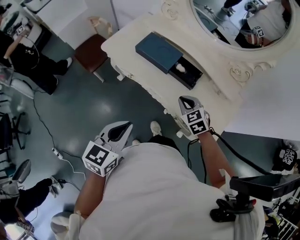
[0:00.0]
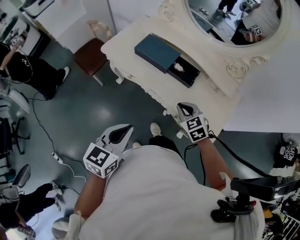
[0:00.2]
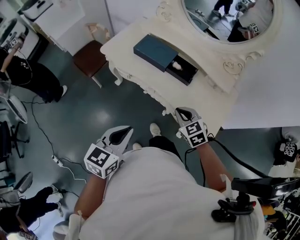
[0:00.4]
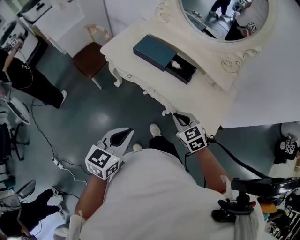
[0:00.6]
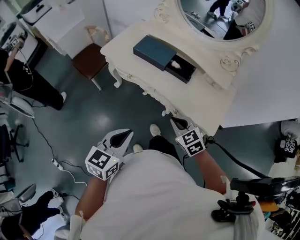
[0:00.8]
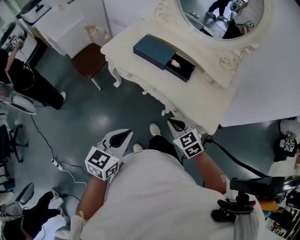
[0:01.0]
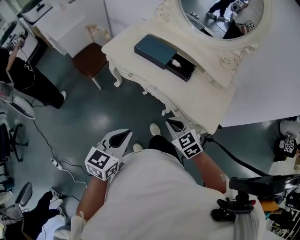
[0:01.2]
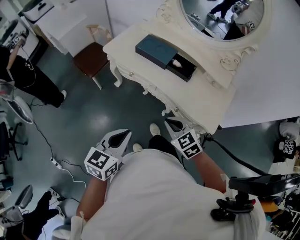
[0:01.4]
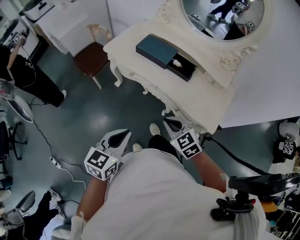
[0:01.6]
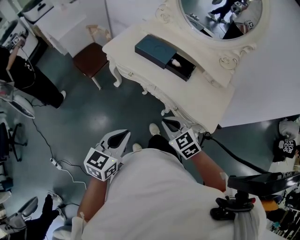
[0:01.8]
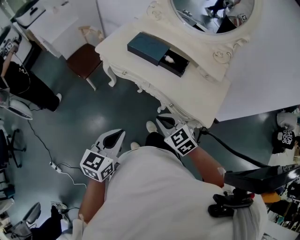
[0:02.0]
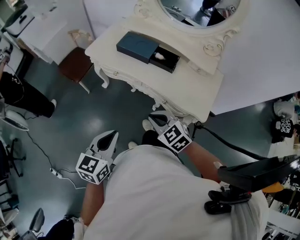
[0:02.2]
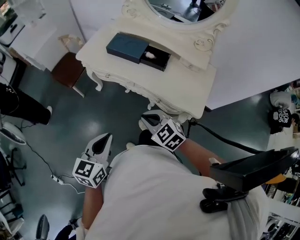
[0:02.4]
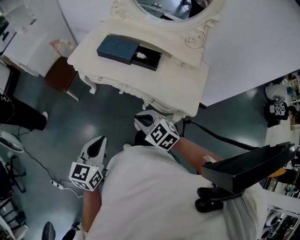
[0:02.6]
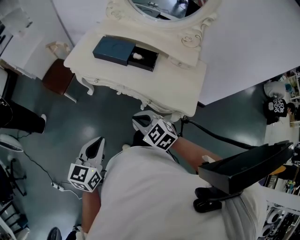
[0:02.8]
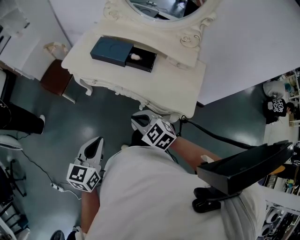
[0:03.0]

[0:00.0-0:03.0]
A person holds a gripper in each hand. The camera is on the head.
0:00.0 to 0:01.6: The right gripper goes some 25 cm backward and to the left. The left gripper travels backward by approximately 15 cm.
0:01.6 to 0:03.0: The grippers stay close to where they were, moving slightly.

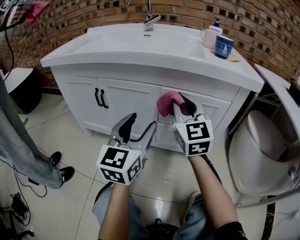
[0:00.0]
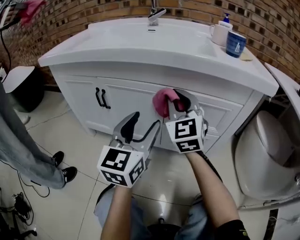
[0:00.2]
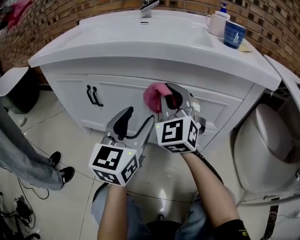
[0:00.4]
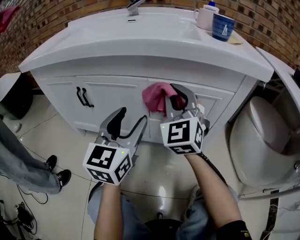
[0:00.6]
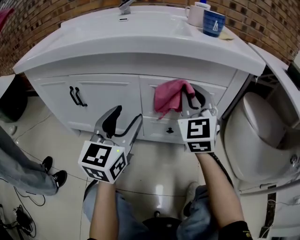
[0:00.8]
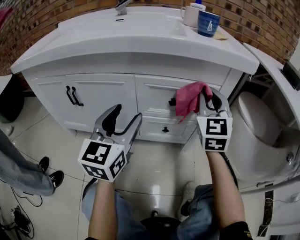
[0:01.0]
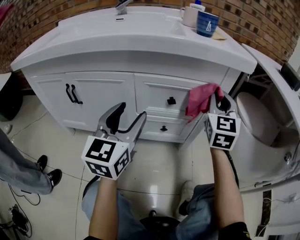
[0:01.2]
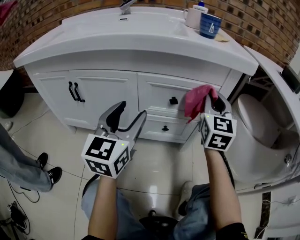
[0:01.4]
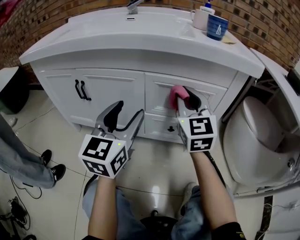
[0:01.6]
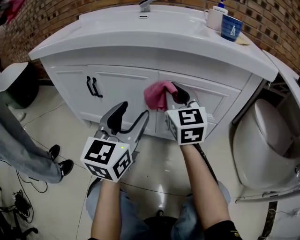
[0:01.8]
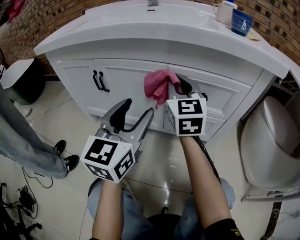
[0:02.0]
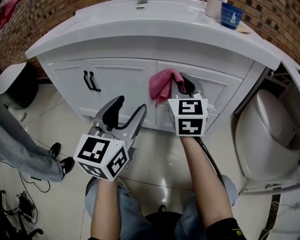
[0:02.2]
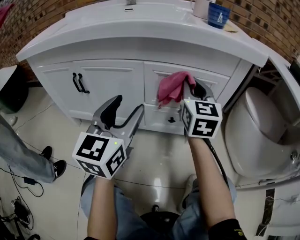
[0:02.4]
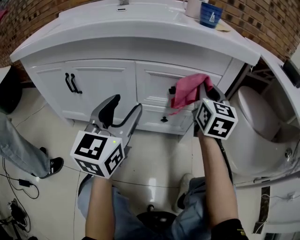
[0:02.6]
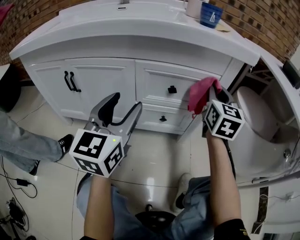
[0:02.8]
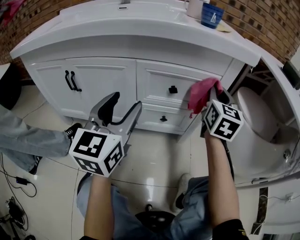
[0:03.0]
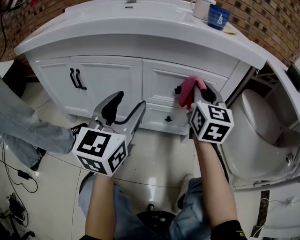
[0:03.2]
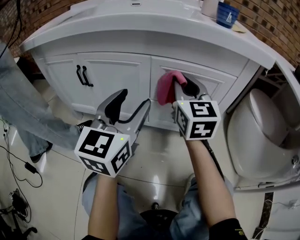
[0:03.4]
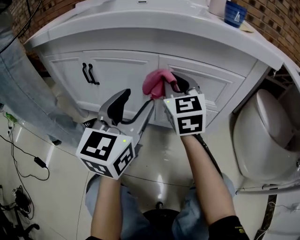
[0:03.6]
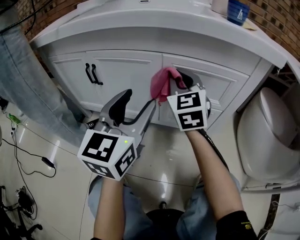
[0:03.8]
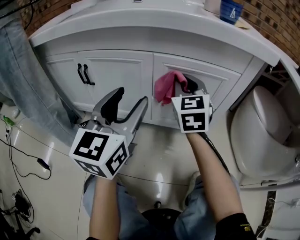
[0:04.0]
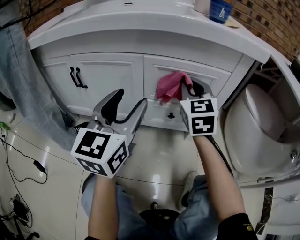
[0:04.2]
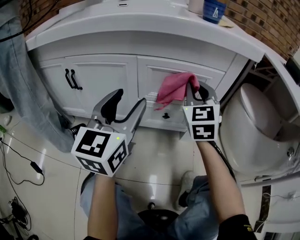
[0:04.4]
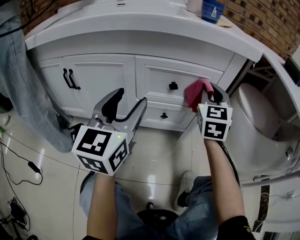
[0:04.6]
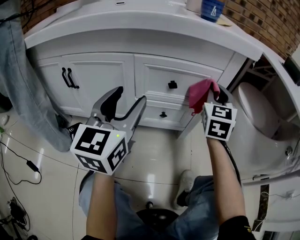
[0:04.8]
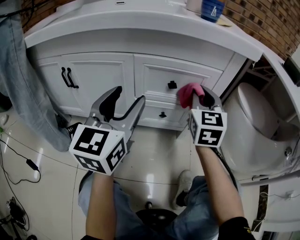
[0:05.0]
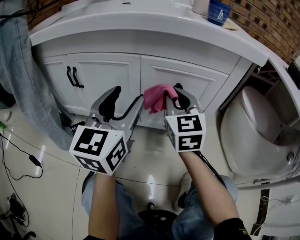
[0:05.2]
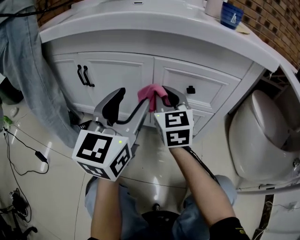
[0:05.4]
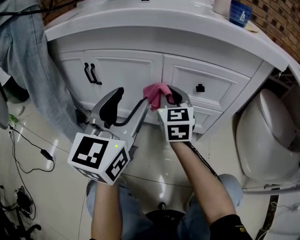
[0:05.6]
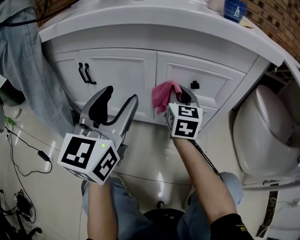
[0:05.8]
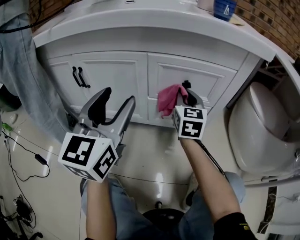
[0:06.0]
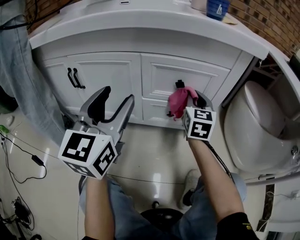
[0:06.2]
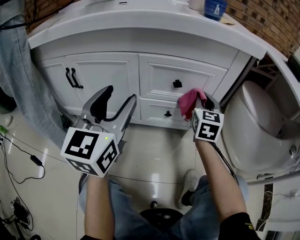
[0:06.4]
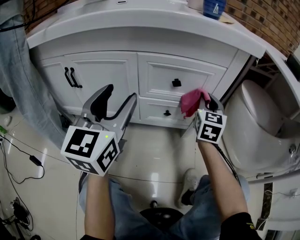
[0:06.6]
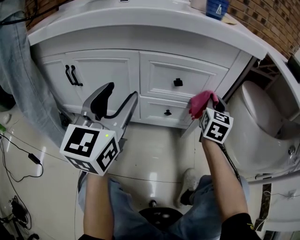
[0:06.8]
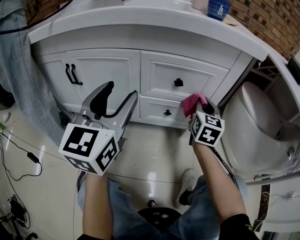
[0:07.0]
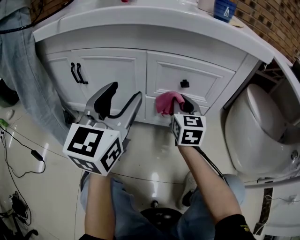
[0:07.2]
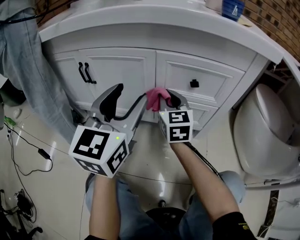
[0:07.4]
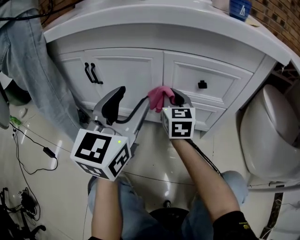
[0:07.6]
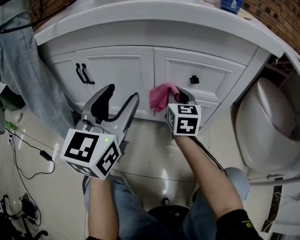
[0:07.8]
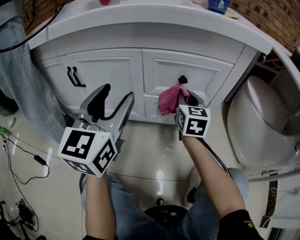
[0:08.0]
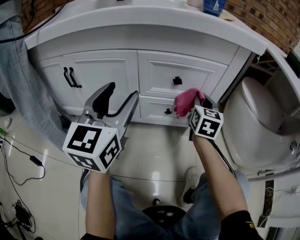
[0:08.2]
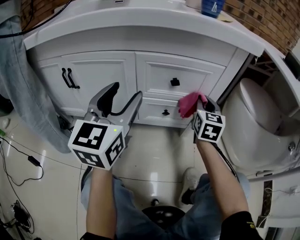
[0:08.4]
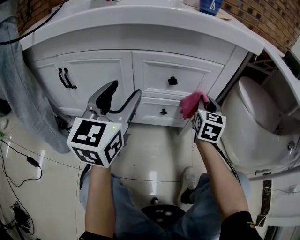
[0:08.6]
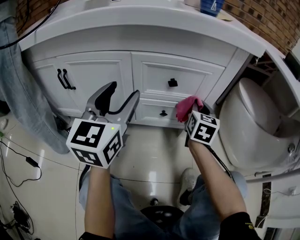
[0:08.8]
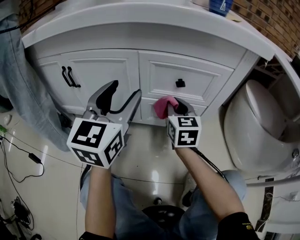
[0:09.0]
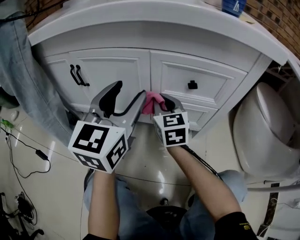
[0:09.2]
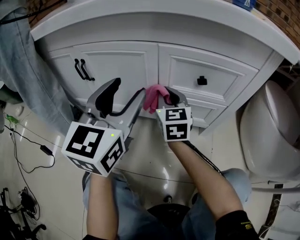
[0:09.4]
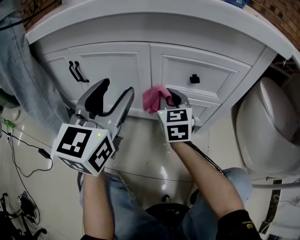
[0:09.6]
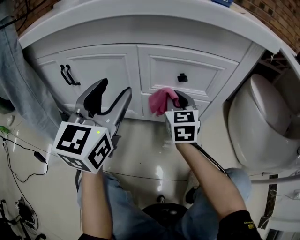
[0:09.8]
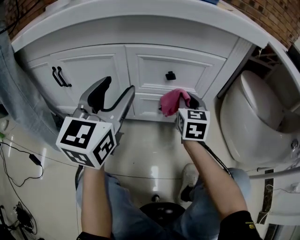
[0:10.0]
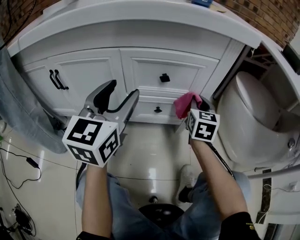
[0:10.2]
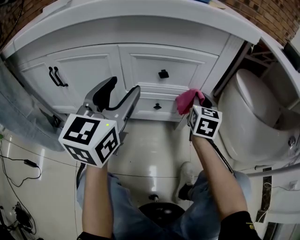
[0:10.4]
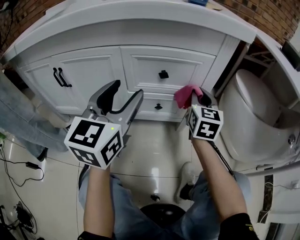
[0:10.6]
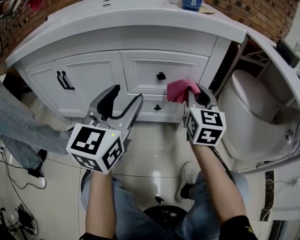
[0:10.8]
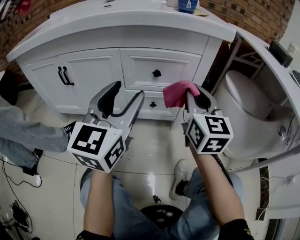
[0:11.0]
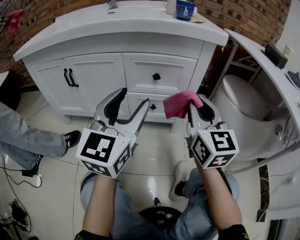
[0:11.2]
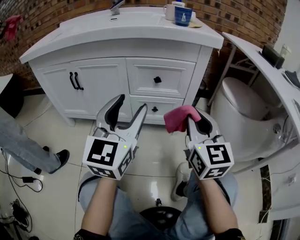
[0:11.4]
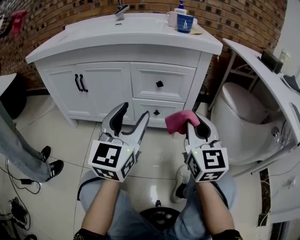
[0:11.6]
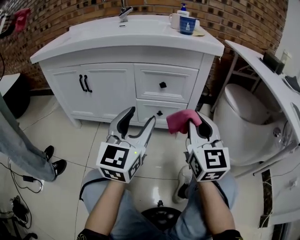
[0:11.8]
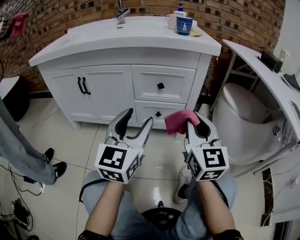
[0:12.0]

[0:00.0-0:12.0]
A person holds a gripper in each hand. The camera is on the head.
0:00.0 to 0:01.6: The right gripper moves left and right over roughly 25 cm, changing direction 2 times.
0:01.6 to 0:03.0: The right gripper moves to the right, some 15 cm, and changes its angle by approximately 30 degrees.
0:03.0 to 0:04.4: The right gripper moves to the left, roughly 10 cm, and rotates roughly 30 degrees.
0:04.4 to 0:06.0: The left gripper heads to the left, covering roughly 5 cm. The right gripper moves left and right over some 25 cm, changing direction 2 times, and changes its angle by approximately 20 degrees.
0:06.0 to 0:07.6: The right gripper goes roughly 10 cm to the left.
0:07.6 to 0:09.0: The right gripper travels to the right by some 10 cm. The left gripper ends up roughly 5 cm from where it was.
0:09.0 to 0:10.4: The right gripper moves to the right, some 15 cm, and changes its angle by roughly 20 degrees.
0:10.4 to 0:12.0: The right gripper heads backward and upward, covering some 30 cm, and rotates approximately 30 degrees. The left gripper is displaced backward by about 15 cm.

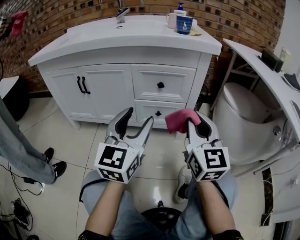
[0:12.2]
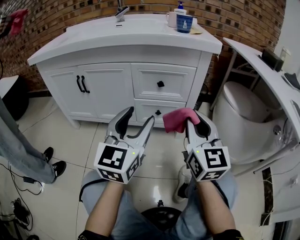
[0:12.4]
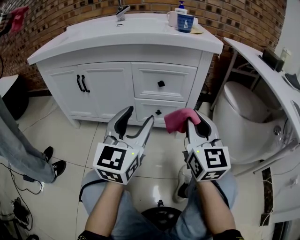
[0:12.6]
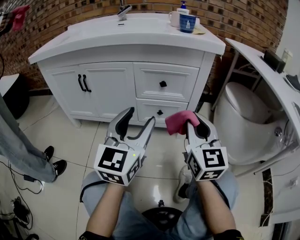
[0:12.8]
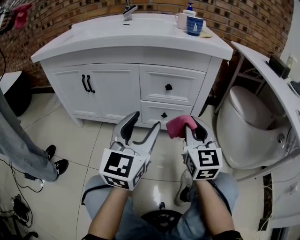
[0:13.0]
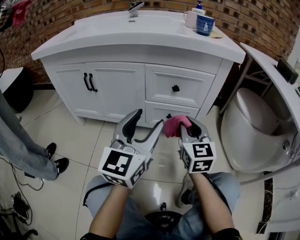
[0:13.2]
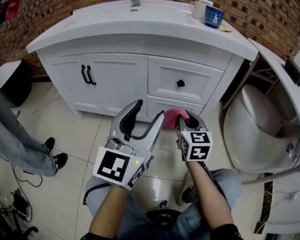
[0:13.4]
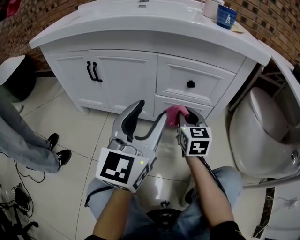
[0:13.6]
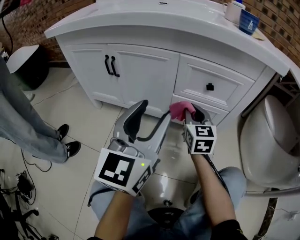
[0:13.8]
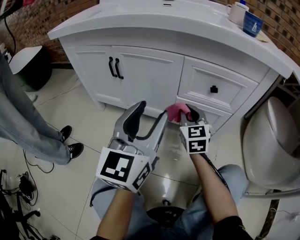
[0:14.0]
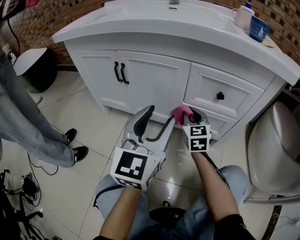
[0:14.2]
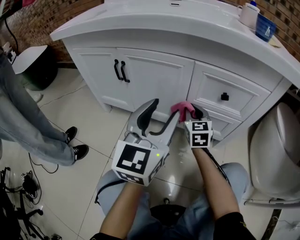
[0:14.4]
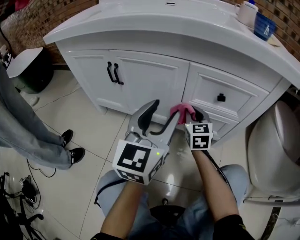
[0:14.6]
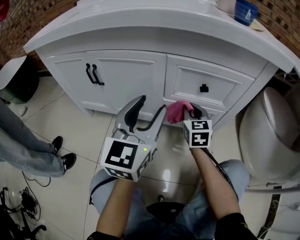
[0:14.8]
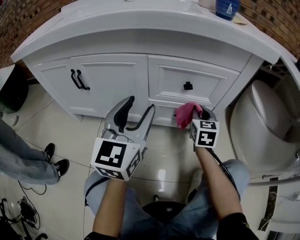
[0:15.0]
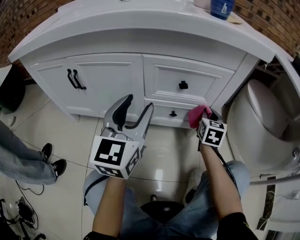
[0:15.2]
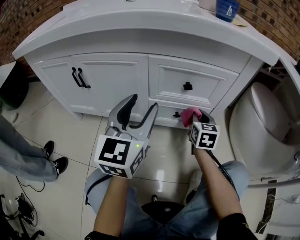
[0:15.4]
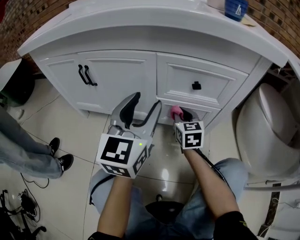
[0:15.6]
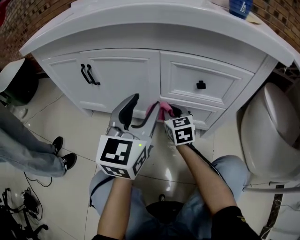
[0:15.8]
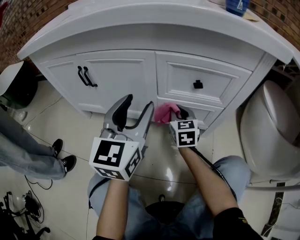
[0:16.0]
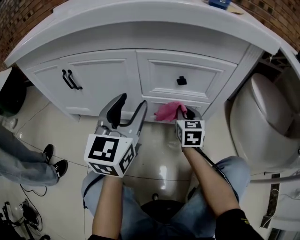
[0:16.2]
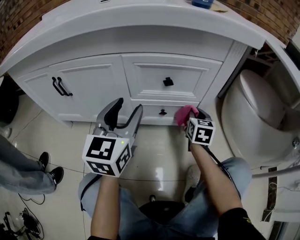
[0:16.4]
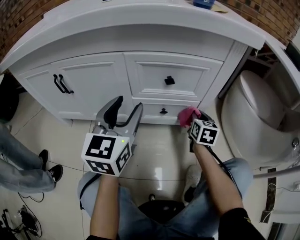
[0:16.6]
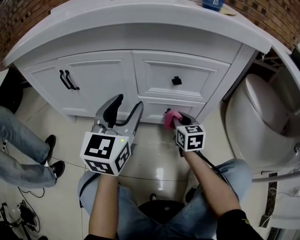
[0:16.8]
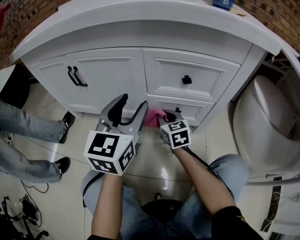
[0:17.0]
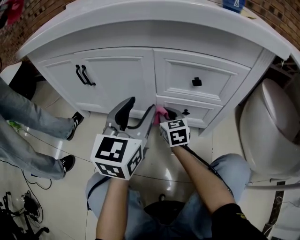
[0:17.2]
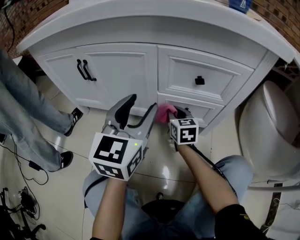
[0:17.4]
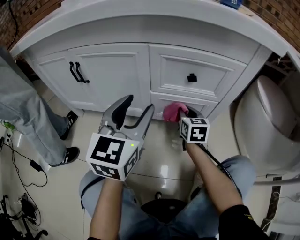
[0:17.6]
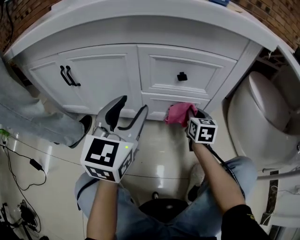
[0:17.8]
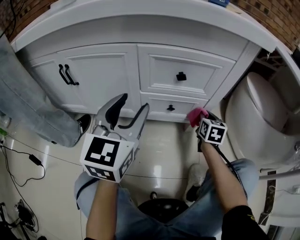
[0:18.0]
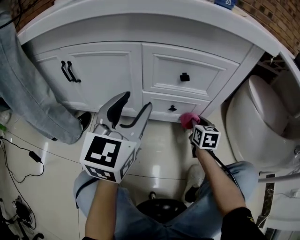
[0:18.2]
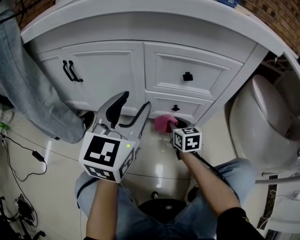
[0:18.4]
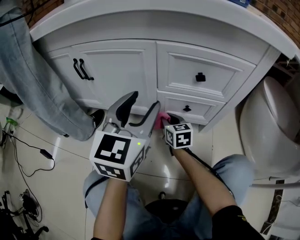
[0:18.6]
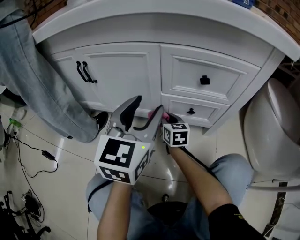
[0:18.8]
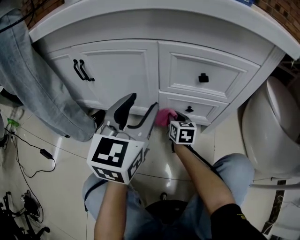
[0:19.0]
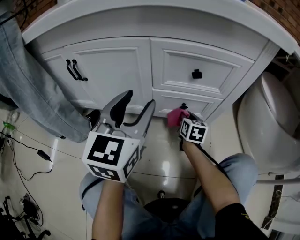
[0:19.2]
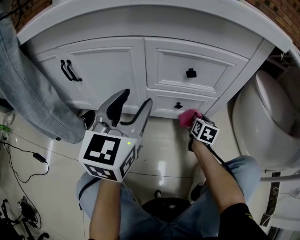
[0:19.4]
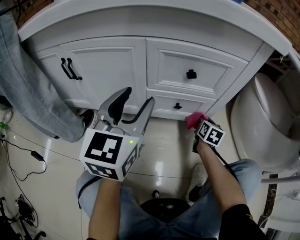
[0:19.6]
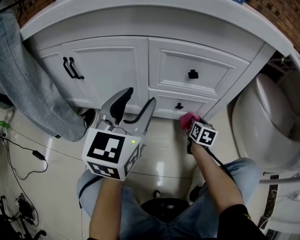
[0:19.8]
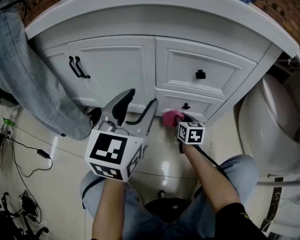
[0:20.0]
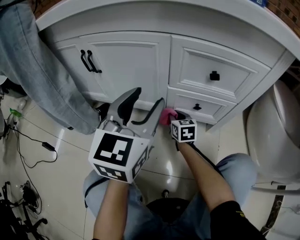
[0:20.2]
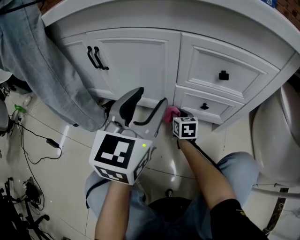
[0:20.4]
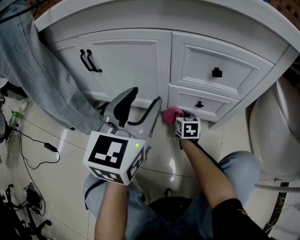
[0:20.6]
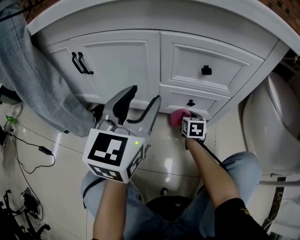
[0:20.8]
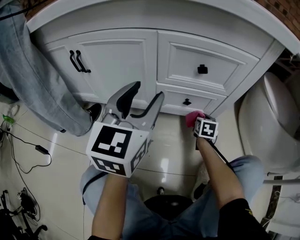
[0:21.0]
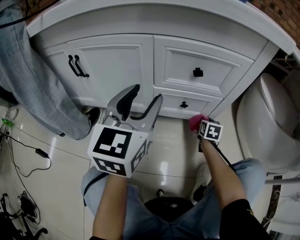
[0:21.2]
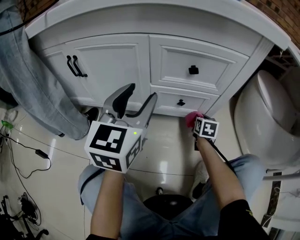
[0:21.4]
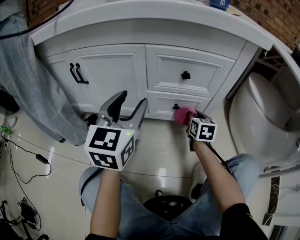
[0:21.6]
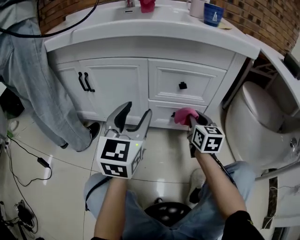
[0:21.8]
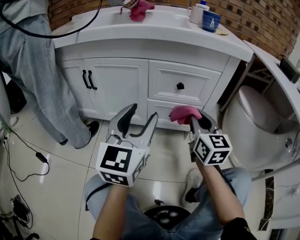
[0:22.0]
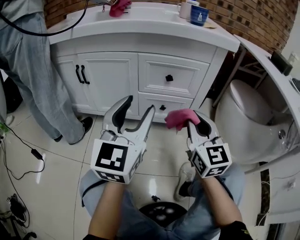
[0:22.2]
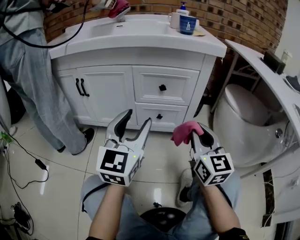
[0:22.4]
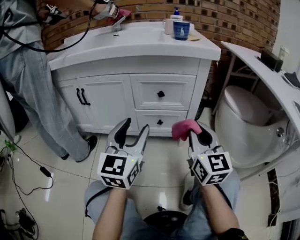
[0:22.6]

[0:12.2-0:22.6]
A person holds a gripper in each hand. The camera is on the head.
0:12.2 to 0:13.6: The left gripper shifts about 5 cm to the left, while the right gripper shifts some 25 cm forward, downward and to the left, and rotates some 20 degrees.
0:13.6 to 0:15.2: The right gripper goes some 20 cm to the right, forward and downward, and rotates about 20 degrees. The left gripper moves forward, approximately 10 cm.
0:15.2 to 0:16.6: The right gripper heads downward, covering approximately 5 cm, and goes to the left and returns, approximately 25 cm each way.
0:16.6 to 0:18.2: The right gripper goes left and right, some 25 cm each way, reversing 2 times.
0:18.2 to 0:19.6: The right gripper goes to the left and returns, about 25 cm each way.
0:19.6 to 0:21.2: The right gripper travels to the left and back again, approximately 25 cm each way.
0:21.2 to 0:22.6: The right gripper is displaced upward and backward by some 40 cm, and tips its fingers upward by approximately 50 degrees, while the left gripper heads backward, to the right and upward, covering roughly 15 cm.
